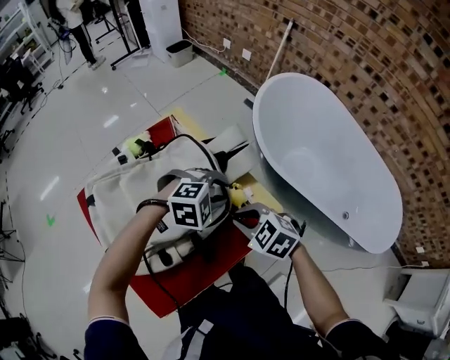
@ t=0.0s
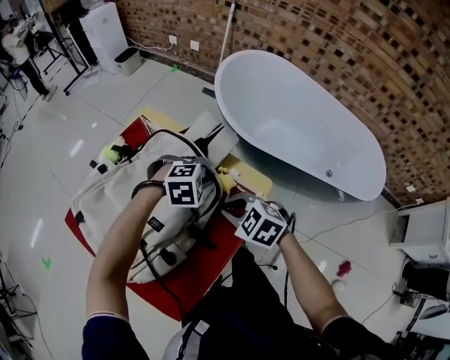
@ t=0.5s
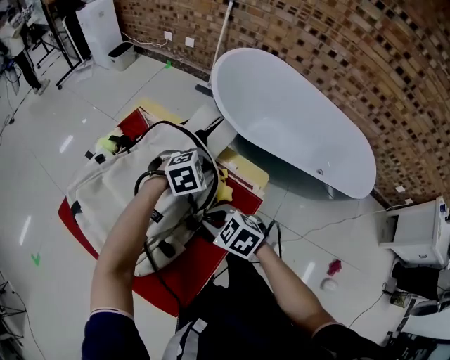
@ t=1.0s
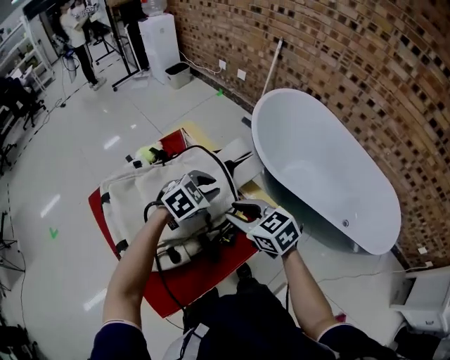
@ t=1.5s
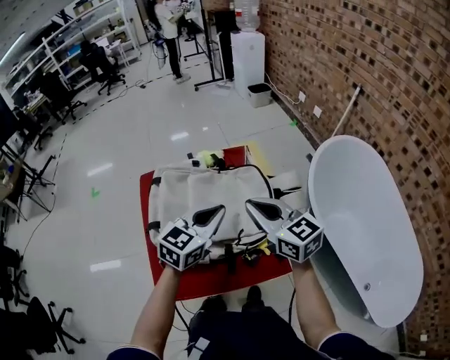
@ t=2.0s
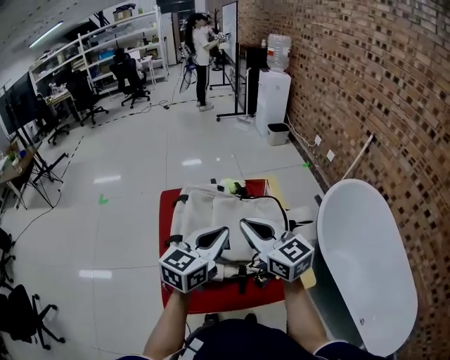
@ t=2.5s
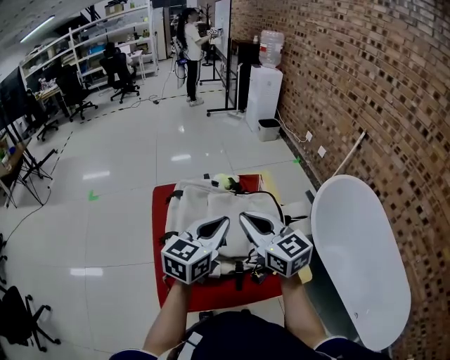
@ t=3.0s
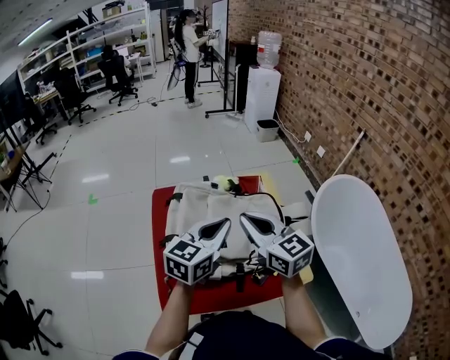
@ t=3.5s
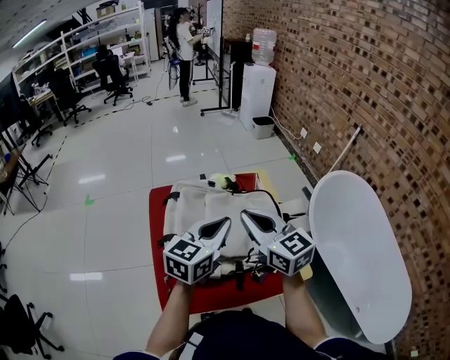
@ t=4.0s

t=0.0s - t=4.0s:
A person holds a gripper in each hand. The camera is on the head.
t=0.0s - t=2.0s: The right gripper shifts approximately 15 cm upward, tilts its fingers roughly 40 degrees upward, and opens, then closes again; the left gripper shifts by roughly 20 cm, points its fingers approximately 40 degrees further upward, and closes.
t=2.0s - t=4.0s: The right gripper goes some 10 cm to the left. Meanwhile the left gripper travels to the left and upward by about 10 cm.

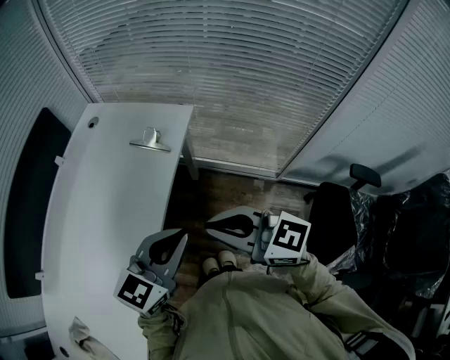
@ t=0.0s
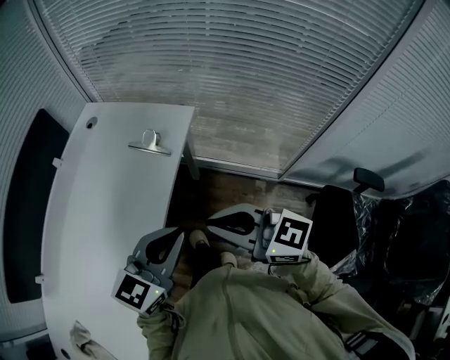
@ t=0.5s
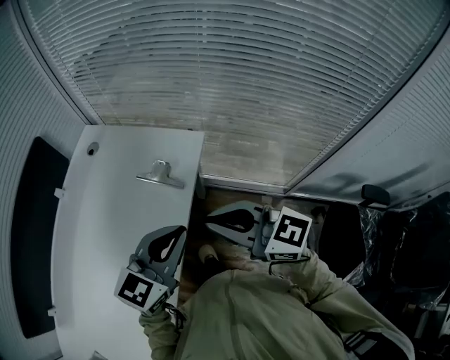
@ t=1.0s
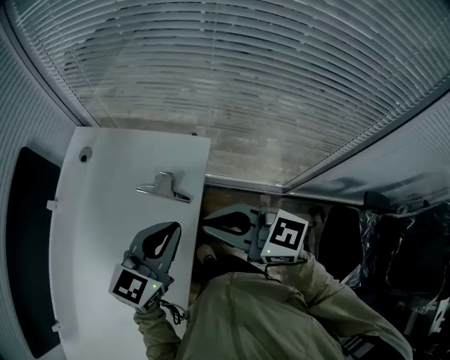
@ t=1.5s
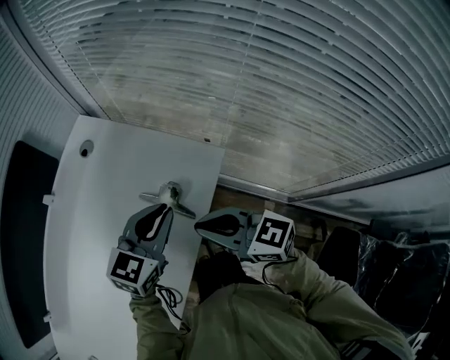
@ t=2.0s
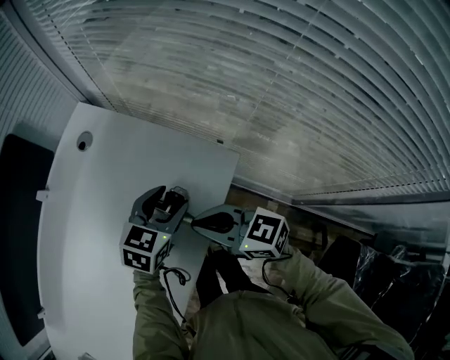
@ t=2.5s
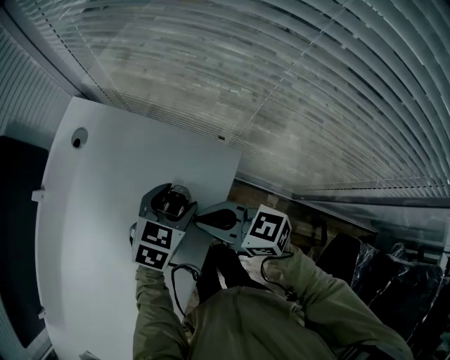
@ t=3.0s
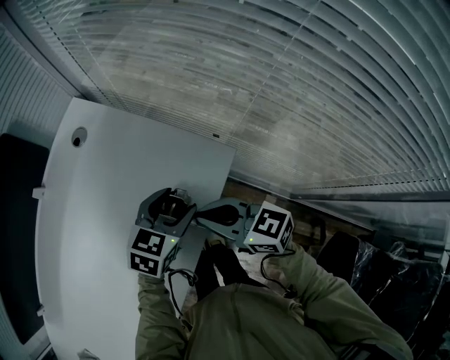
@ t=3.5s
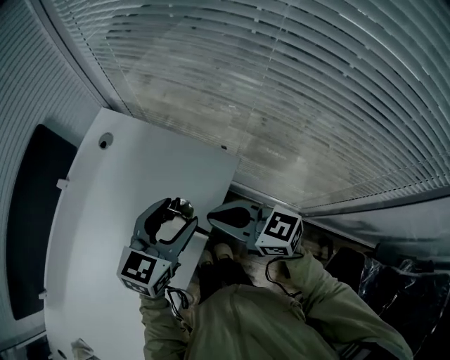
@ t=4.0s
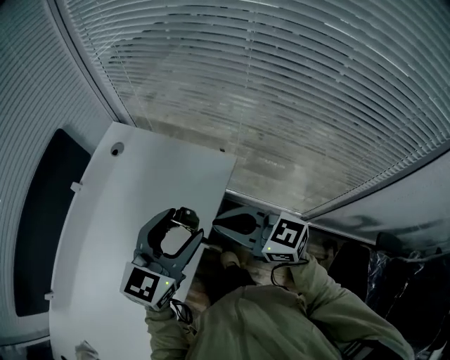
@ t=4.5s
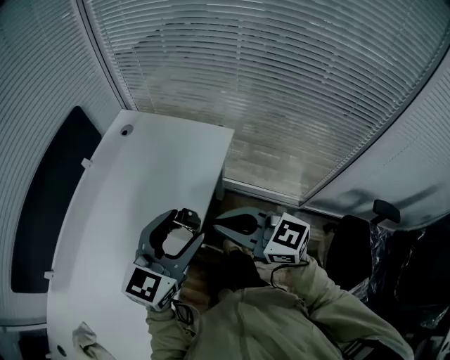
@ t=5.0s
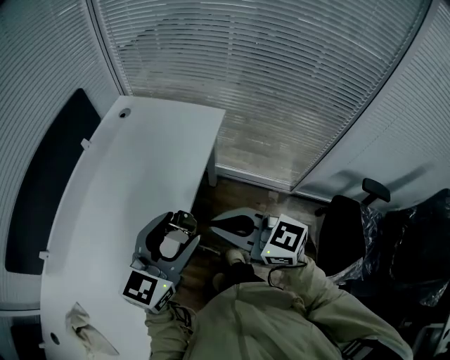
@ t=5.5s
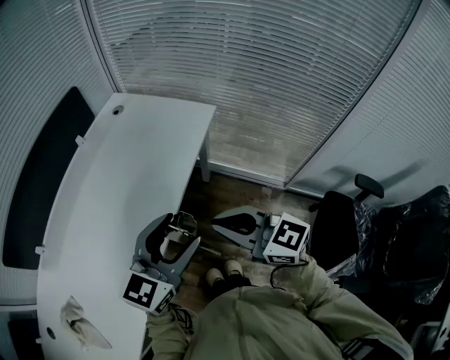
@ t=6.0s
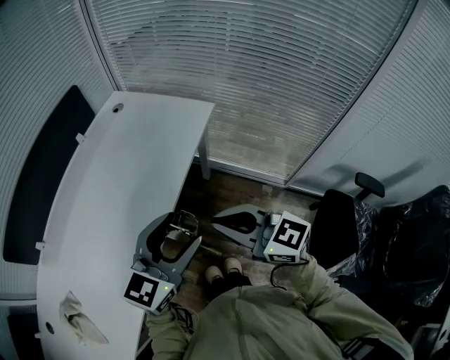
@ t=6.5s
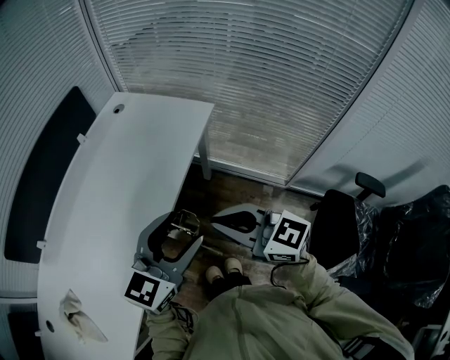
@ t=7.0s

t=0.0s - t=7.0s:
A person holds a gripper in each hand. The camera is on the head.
t=0.0s - t=2.0s: Both grippers move forward, approximately 30 cm.
t=2.0s - t=3.5s: The left gripper heads downward, covering approximately 10 cm, and opens, while the right gripper shifts approximately 5 cm downward.
t=3.5s - t=5.0s: The left gripper shifts approximately 35 cm backward, upward and to the left, and turns by about 30 degrees. Meanwhile the right gripper is displaced backward and upward by some 25 cm, and rotates about 20 degrees.
t=5.0s - t=7.0s: The two grippers go roughly 15 cm backward.

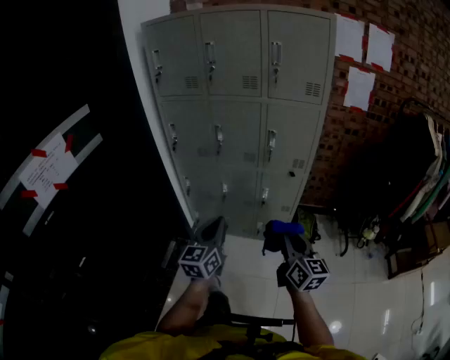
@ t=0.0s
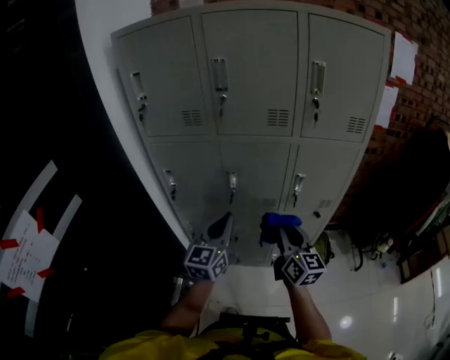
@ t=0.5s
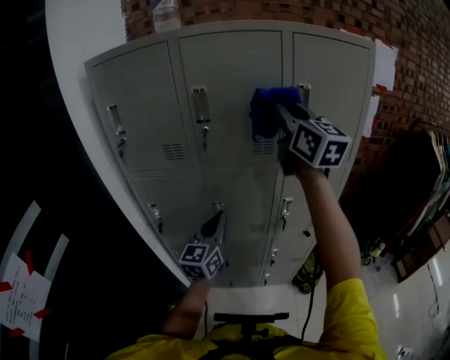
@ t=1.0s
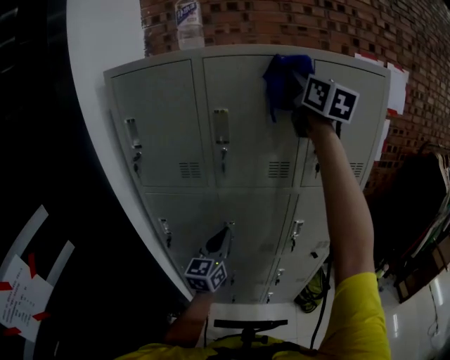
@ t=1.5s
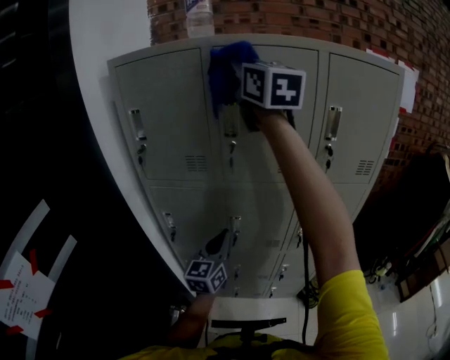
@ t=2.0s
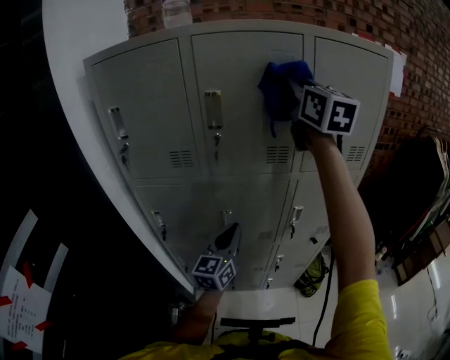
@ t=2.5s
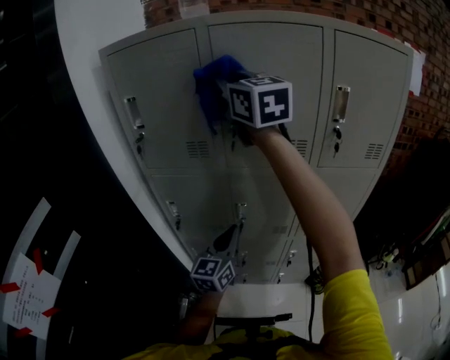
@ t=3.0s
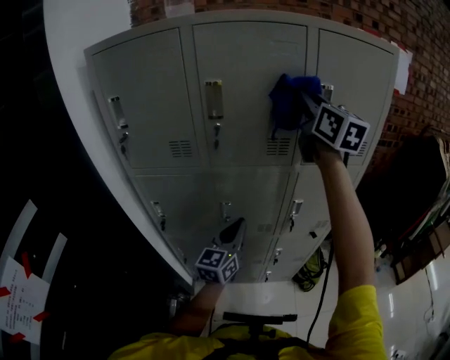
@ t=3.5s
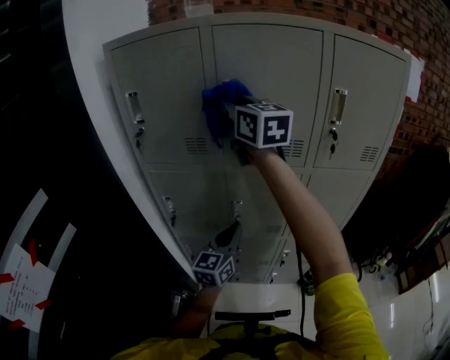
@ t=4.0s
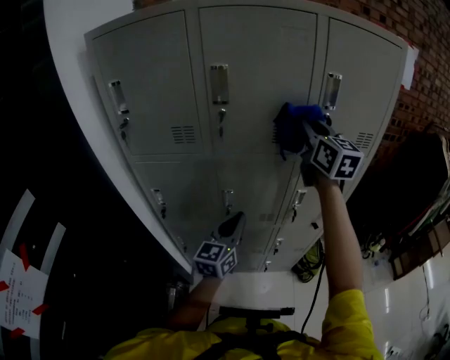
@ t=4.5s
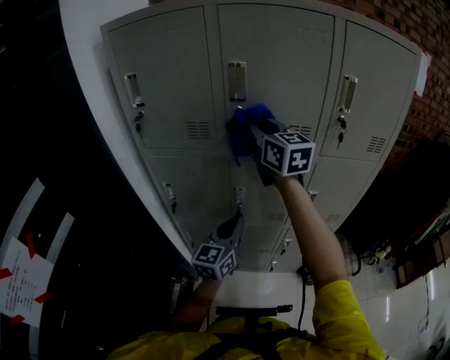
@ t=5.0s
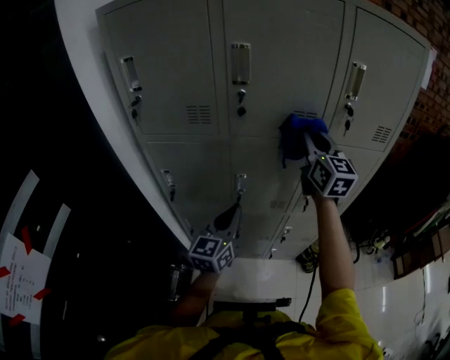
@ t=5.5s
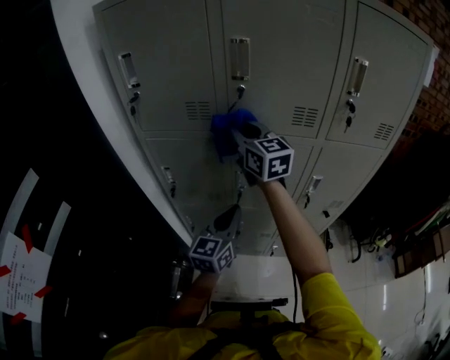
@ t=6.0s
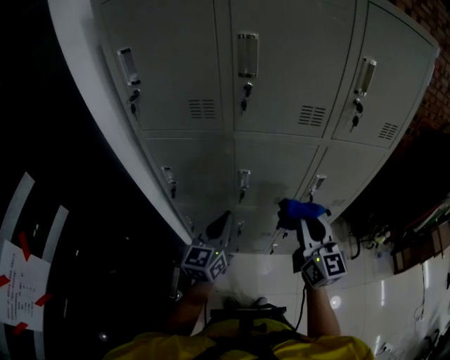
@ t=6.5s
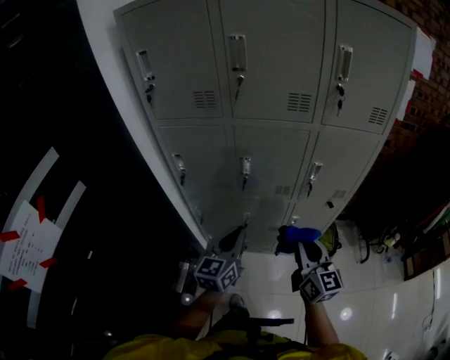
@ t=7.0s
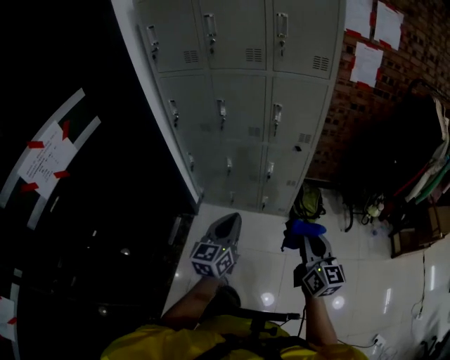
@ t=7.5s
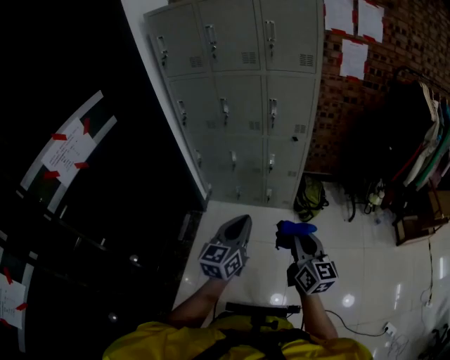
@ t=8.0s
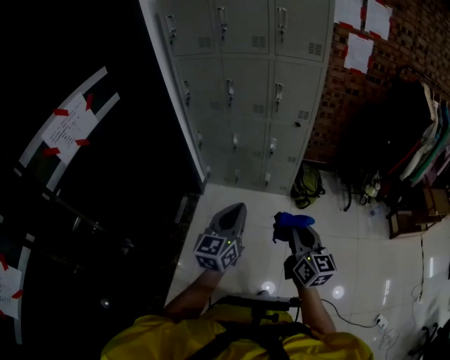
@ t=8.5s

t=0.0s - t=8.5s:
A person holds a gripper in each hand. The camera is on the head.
t=0.0s - t=2.0s: Both grippers are carried forward and to the left, about 50 cm. The right gripper shifts some 50 cm upward, and swivels some 30 degrees.
t=2.0s - t=4.0s: The right gripper swings left and right, some 25 cm each way, with 3 reversals. Meanwhile the left gripper goes left and right, approximately 10 cm each way, reversing 3 times.
t=4.0s - t=6.5s: The right gripper heads downward, backward and to the right, covering approximately 40 cm. The left gripper moves to the left, roughly 5 cm.
t=6.5s - t=8.5s: The two grippers travel together, backward, about 60 cm.

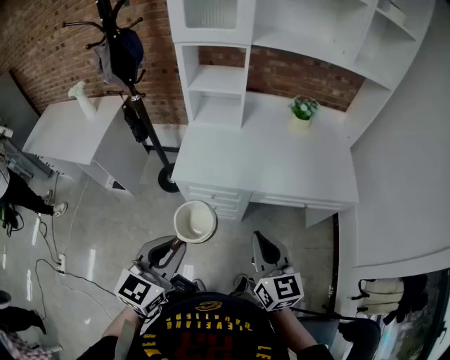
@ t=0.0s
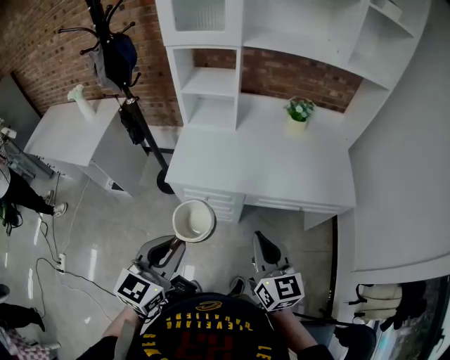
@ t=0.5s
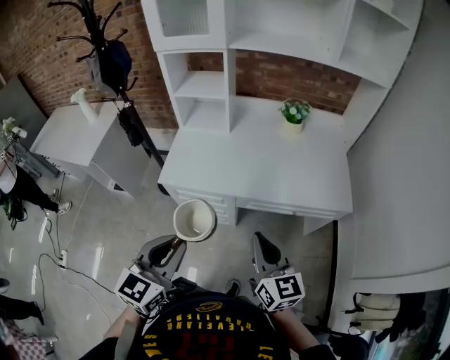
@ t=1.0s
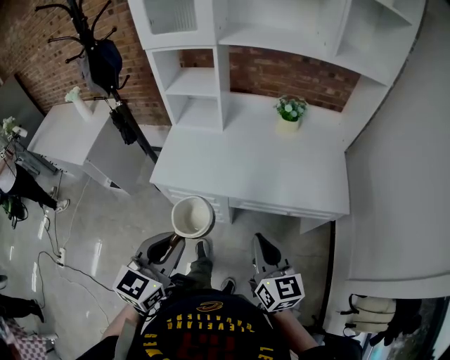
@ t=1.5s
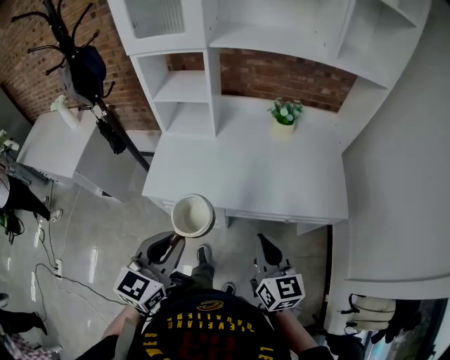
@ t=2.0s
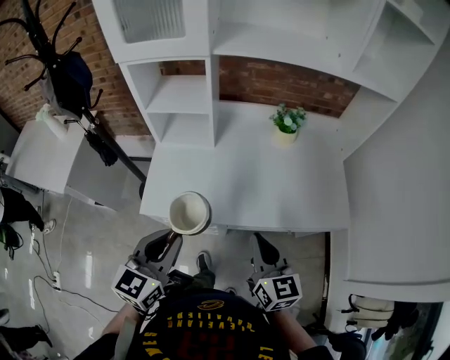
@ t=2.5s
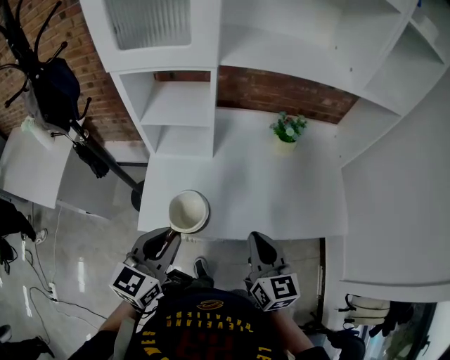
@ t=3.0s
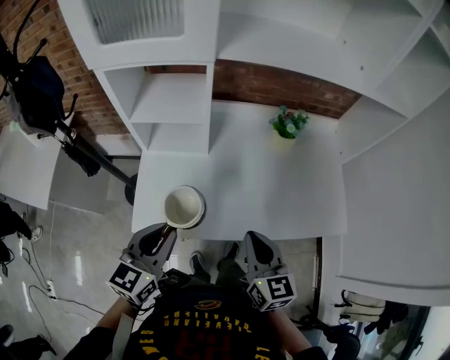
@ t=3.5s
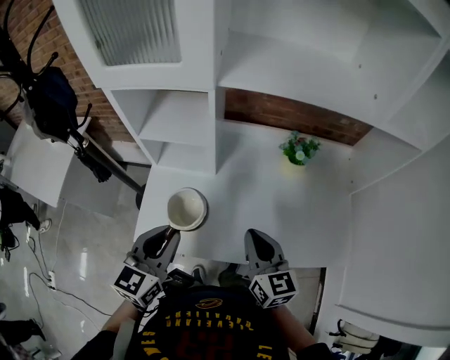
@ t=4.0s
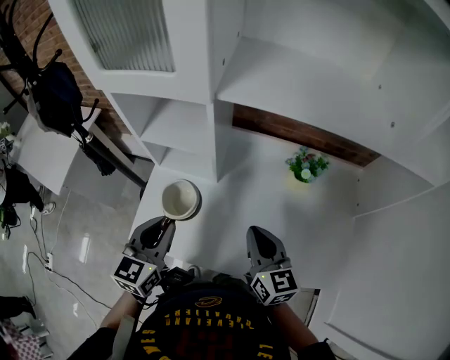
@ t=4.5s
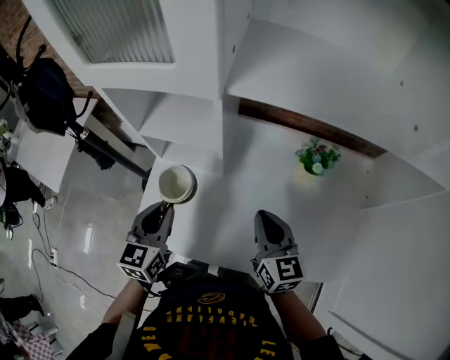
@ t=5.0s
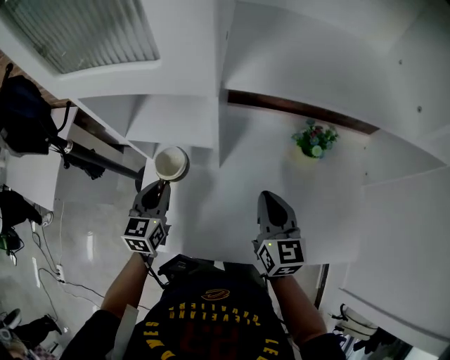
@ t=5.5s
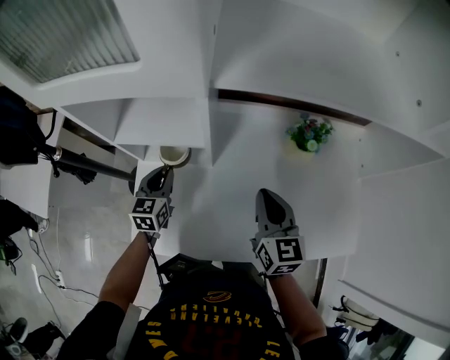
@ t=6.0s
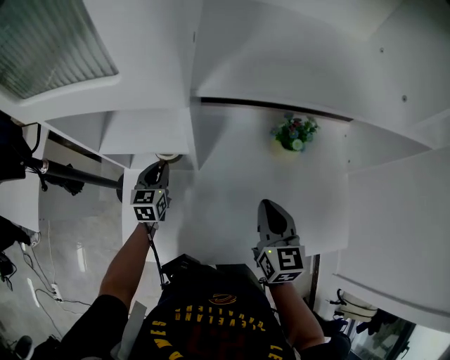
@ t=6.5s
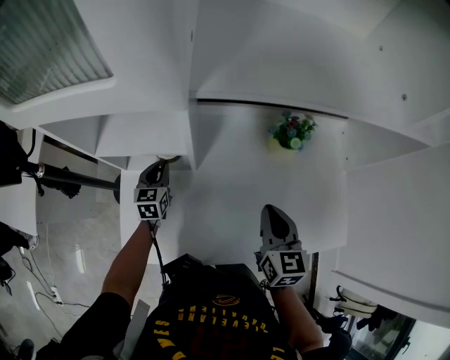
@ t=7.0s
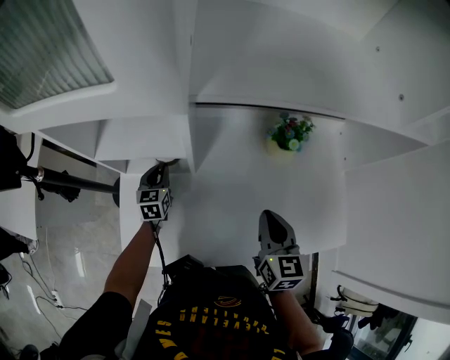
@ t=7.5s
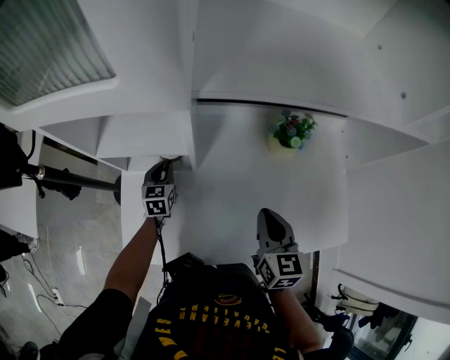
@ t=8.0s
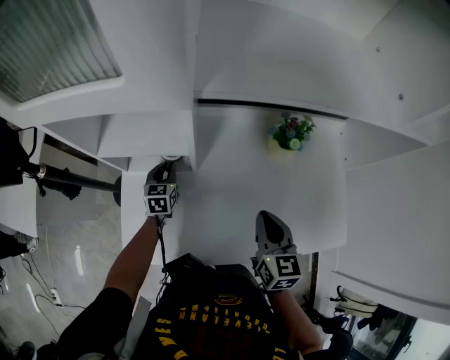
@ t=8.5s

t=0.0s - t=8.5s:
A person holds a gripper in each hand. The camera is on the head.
t=0.0s - t=2.0s: Both grippers travel together to the right and forward, about 20 cm.
t=2.0s - t=4.0s: The two grippers go approximately 25 cm forward.
t=4.0s - t=6.5s: The right gripper goes about 15 cm forward and to the right, while the left gripper is displaced forward and downward by approximately 35 cm.
t=6.5s - t=8.5s: The left gripper travels downward by some 5 cm.
